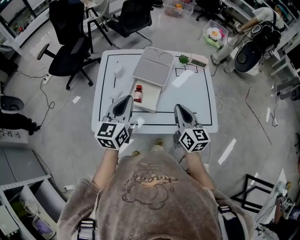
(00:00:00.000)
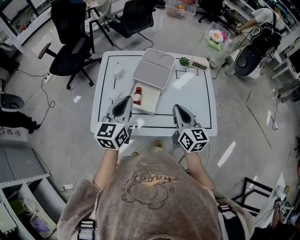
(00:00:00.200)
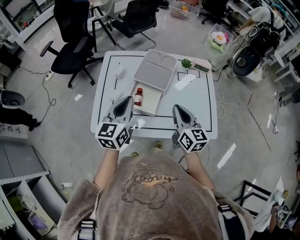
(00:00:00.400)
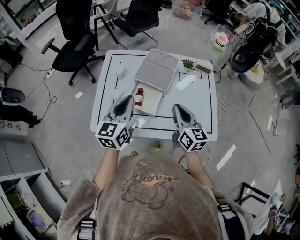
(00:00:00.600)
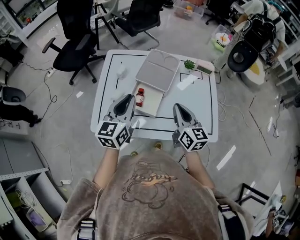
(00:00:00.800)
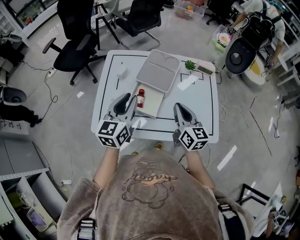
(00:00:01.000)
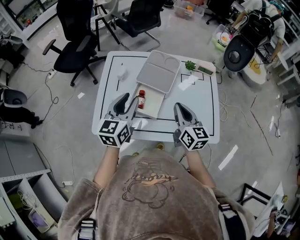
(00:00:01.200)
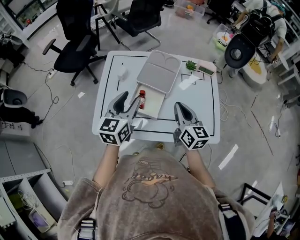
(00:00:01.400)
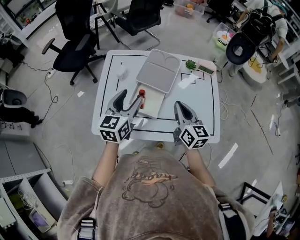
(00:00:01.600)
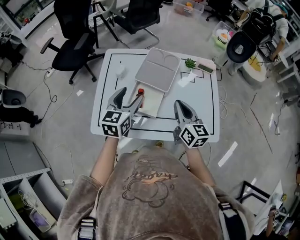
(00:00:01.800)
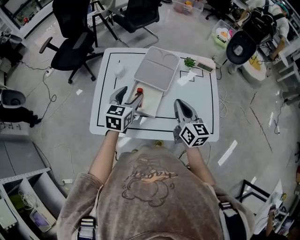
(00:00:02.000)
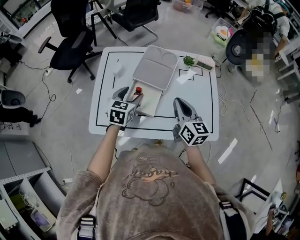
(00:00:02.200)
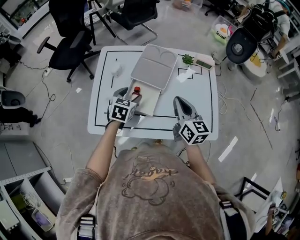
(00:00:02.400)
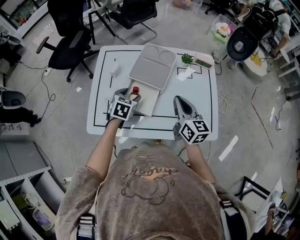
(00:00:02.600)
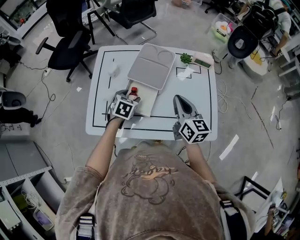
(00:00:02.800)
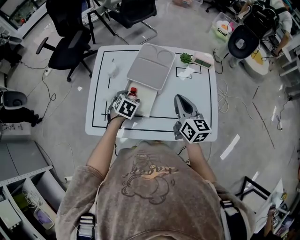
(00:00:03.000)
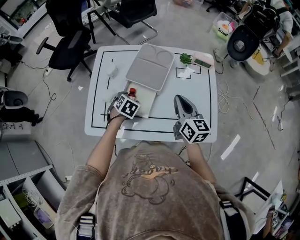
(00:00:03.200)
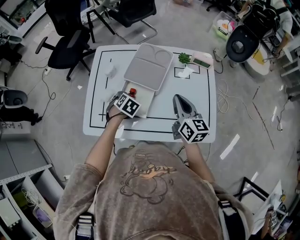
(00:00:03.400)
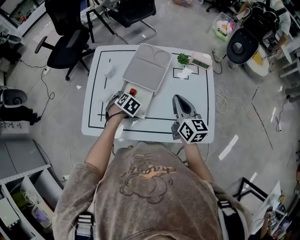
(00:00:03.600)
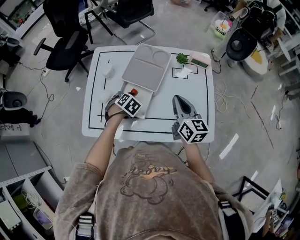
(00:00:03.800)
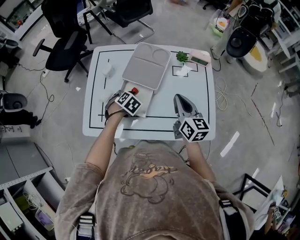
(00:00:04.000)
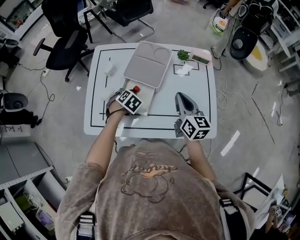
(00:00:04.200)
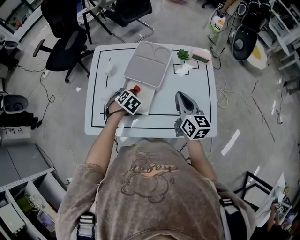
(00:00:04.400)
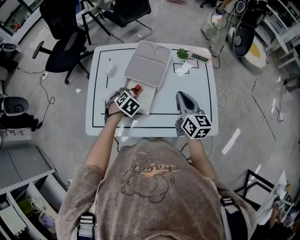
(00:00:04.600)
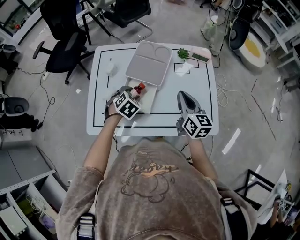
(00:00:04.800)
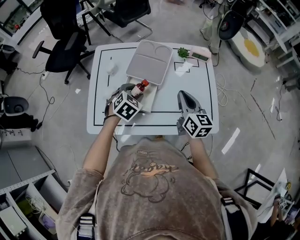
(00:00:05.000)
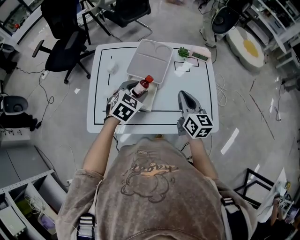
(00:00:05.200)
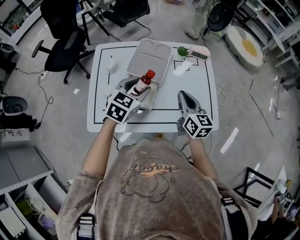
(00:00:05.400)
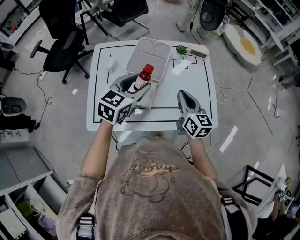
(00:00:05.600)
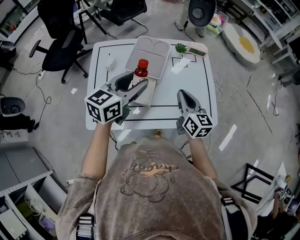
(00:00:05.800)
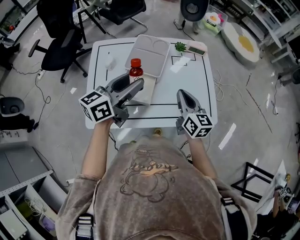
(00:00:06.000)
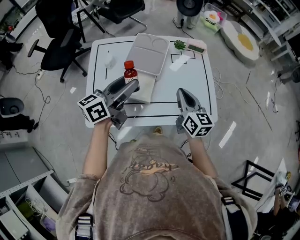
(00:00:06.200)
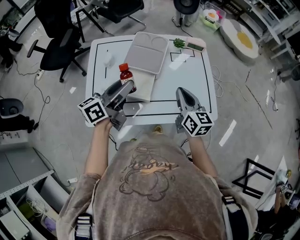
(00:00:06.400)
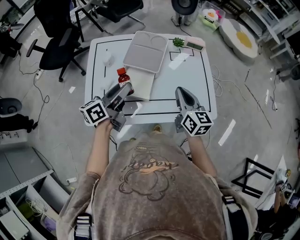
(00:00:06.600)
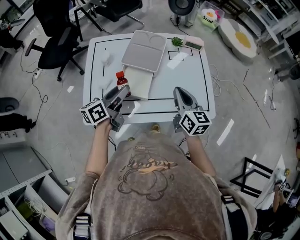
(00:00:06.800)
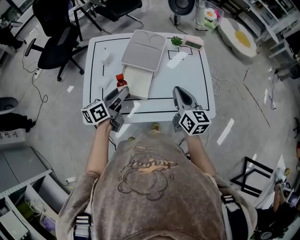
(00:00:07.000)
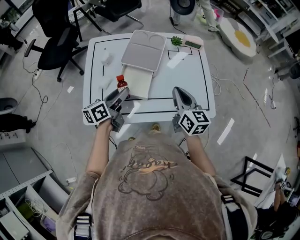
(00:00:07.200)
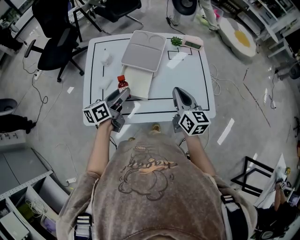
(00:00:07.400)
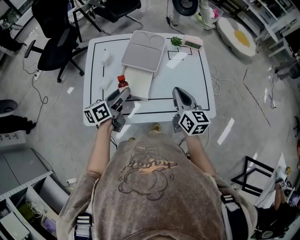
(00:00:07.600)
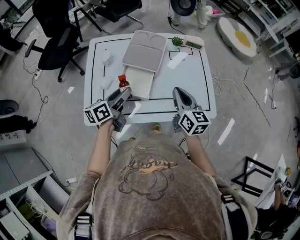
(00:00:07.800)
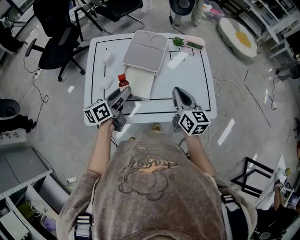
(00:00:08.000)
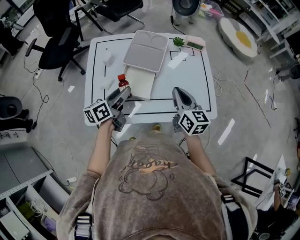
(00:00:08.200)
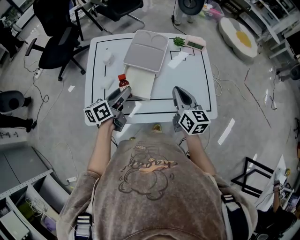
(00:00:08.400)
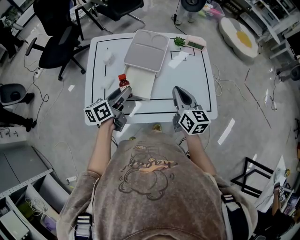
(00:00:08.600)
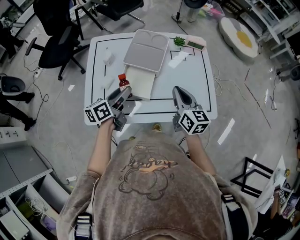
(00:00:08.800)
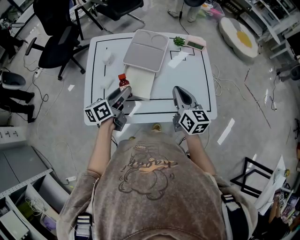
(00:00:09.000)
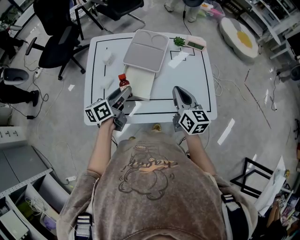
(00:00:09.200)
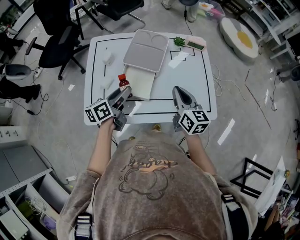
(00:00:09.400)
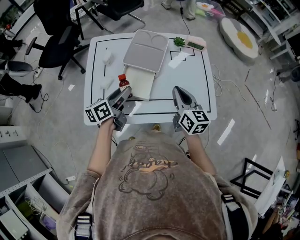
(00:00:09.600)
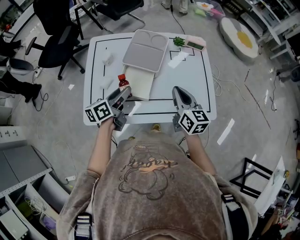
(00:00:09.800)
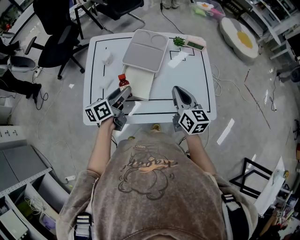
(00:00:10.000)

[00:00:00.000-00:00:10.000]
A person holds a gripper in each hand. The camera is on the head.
00:00:00.000 to 00:00:01.400: The left gripper opens its fingers. Meanwhile the right gripper travels forward by some 5 cm.
00:00:01.400 to 00:00:02.800: The left gripper travels downward by some 20 cm, and angles its fingers downward, by roughly 40 degrees; the right gripper moves roughly 5 cm.
00:00:02.800 to 00:00:04.200: The left gripper turns by roughly 30 degrees.
00:00:04.200 to 00:00:05.800: The left gripper moves upward, about 25 cm, and points its fingers about 60 degrees further upward; the right gripper goes approximately 5 cm backward.
00:00:05.800 to 00:00:07.200: The left gripper travels downward and to the left by some 15 cm, and swivels about 30 degrees.
00:00:07.200 to 00:00:10.000: Both grippers stay about where they are.

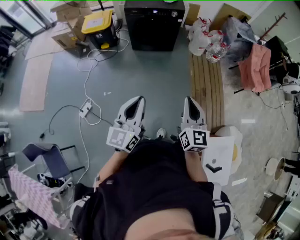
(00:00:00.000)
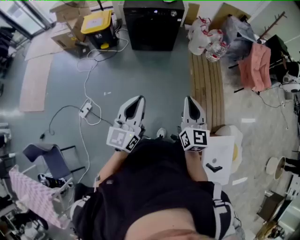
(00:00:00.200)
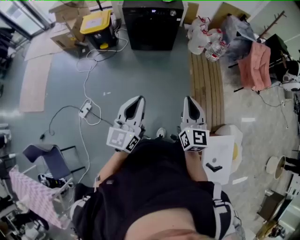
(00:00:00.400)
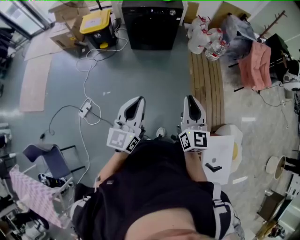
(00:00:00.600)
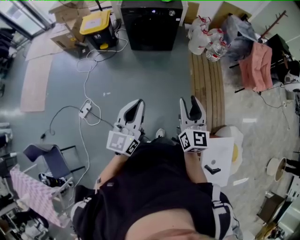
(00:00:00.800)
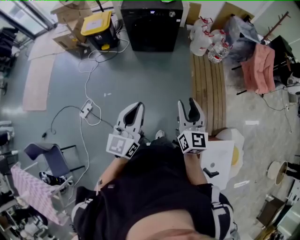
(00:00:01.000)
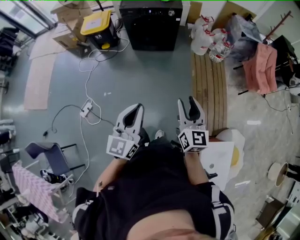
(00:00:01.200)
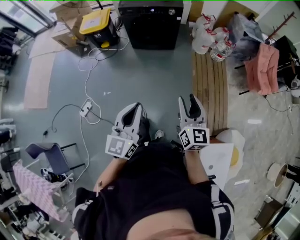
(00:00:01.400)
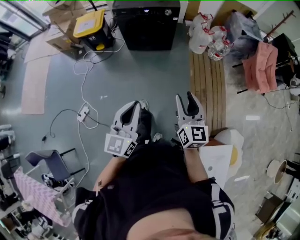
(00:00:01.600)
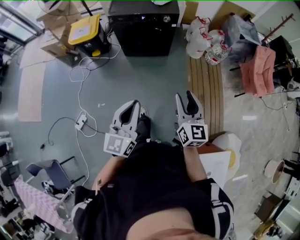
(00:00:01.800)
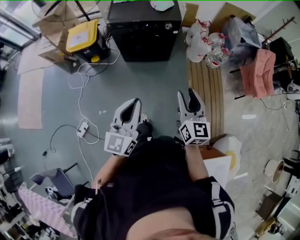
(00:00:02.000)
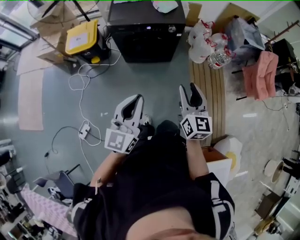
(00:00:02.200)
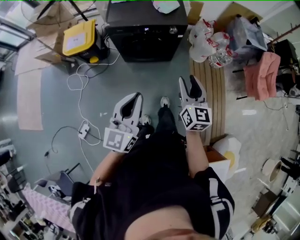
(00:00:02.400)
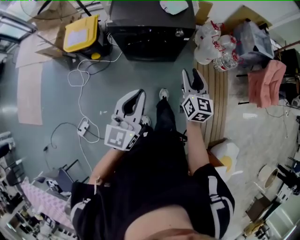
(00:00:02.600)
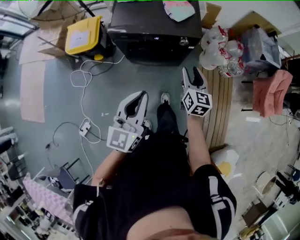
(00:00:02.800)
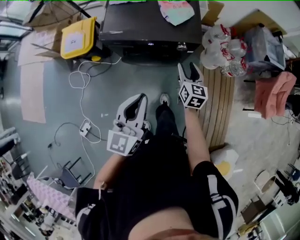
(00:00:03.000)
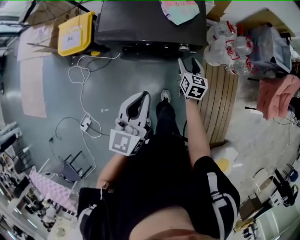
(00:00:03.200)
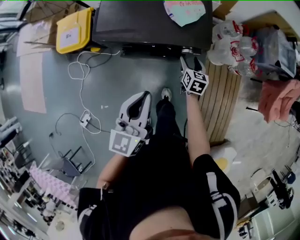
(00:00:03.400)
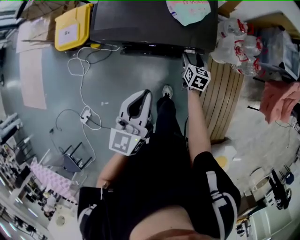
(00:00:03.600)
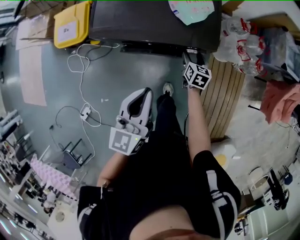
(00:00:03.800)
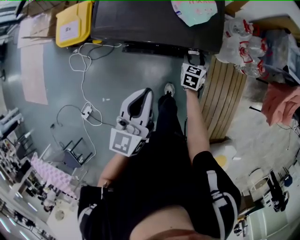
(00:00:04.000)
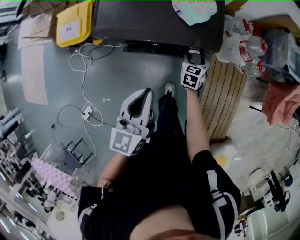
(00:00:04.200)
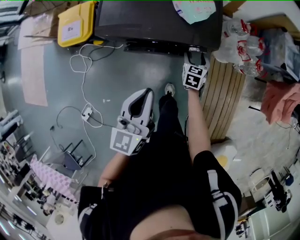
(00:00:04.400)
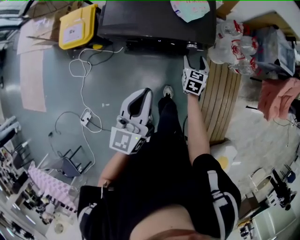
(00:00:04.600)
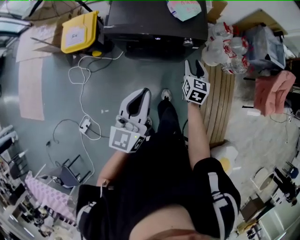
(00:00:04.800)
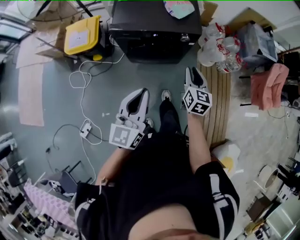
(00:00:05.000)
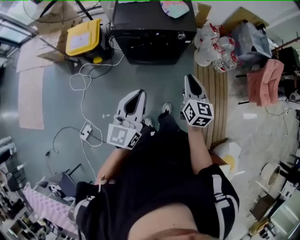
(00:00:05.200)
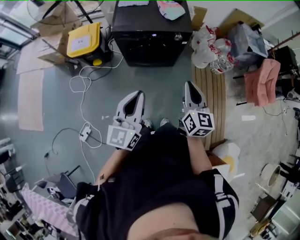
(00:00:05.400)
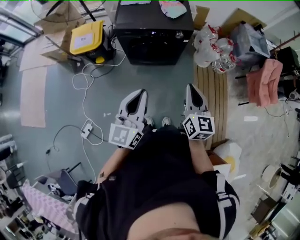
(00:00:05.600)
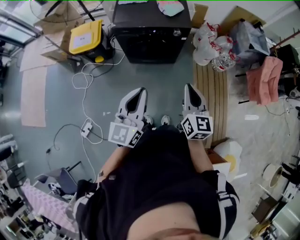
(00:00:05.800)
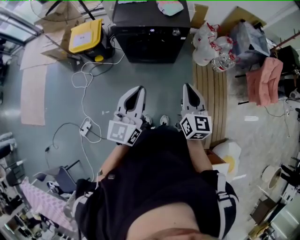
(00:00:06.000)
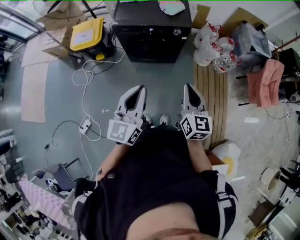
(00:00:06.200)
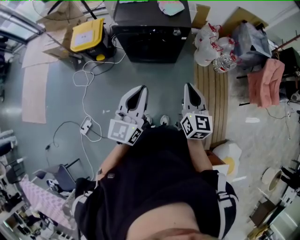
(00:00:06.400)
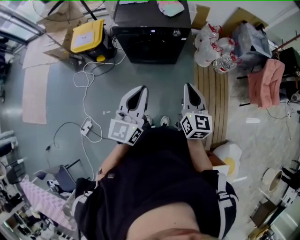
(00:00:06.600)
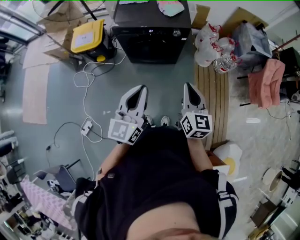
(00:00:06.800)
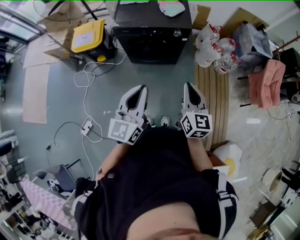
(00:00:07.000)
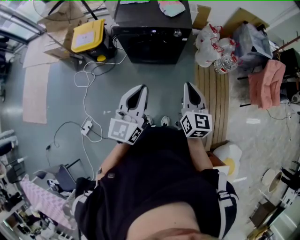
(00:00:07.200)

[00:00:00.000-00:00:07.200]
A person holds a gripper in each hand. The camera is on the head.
00:00:00.000 to 00:00:01.400: The left gripper goes roughly 15 cm to the right and forward; the right gripper heads forward and to the right, covering approximately 15 cm, and opens up.
00:00:01.400 to 00:00:02.800: The pair of grippers is taken forward, approximately 80 cm.
00:00:02.800 to 00:00:04.400: The right gripper shifts about 40 cm downward and forward, turns by approximately 30 degrees, and opens its fingers. The left gripper is displaced forward and downward by some 30 cm.
00:00:04.400 to 00:00:05.800: Both grippers are carried backward, about 60 cm. The right gripper heads upward, covering some 40 cm, tips its fingers upward by about 30 degrees, and closes its fingers; the left gripper is displaced upward by about 20 cm.
00:00:05.800 to 00:00:07.200: The grippers stay close to where they were, moving slightly.

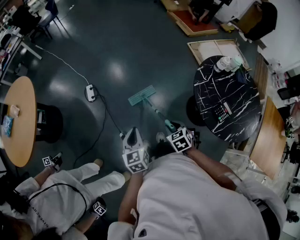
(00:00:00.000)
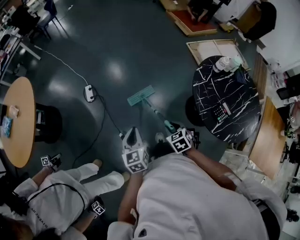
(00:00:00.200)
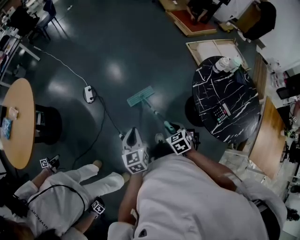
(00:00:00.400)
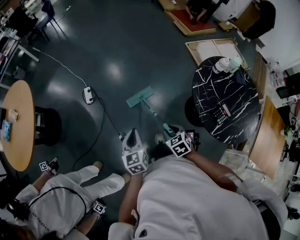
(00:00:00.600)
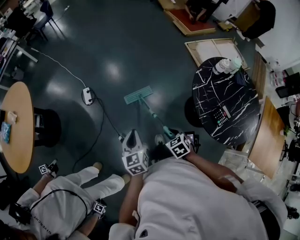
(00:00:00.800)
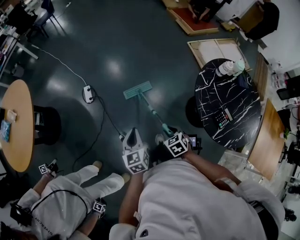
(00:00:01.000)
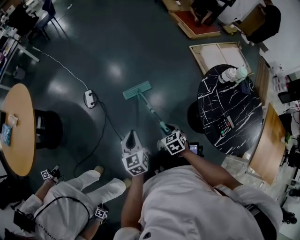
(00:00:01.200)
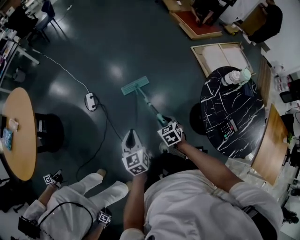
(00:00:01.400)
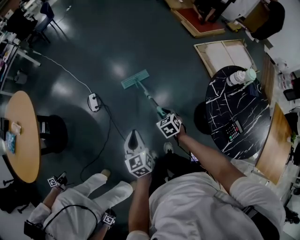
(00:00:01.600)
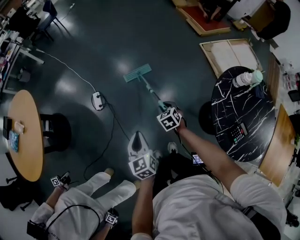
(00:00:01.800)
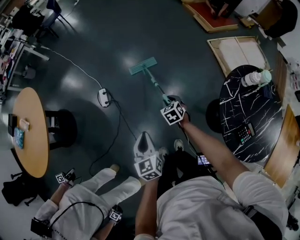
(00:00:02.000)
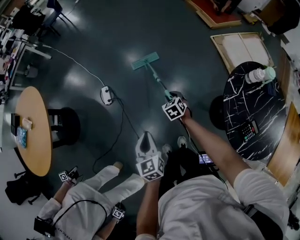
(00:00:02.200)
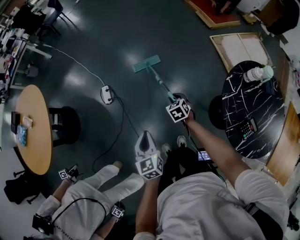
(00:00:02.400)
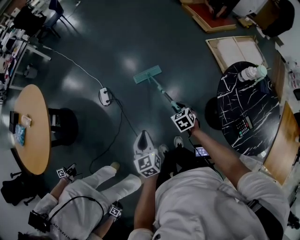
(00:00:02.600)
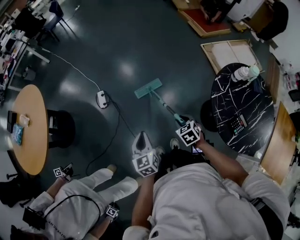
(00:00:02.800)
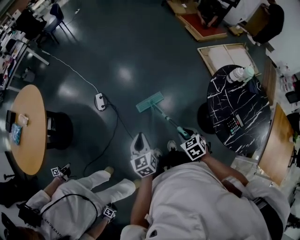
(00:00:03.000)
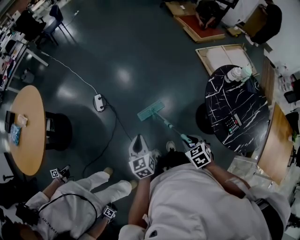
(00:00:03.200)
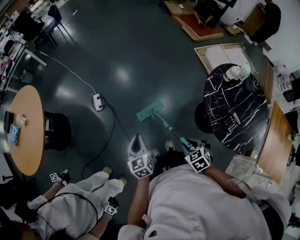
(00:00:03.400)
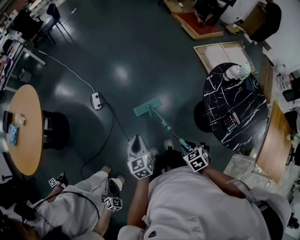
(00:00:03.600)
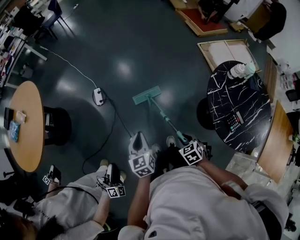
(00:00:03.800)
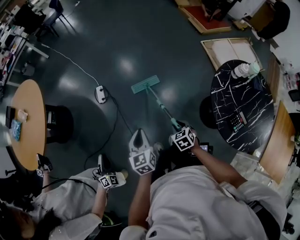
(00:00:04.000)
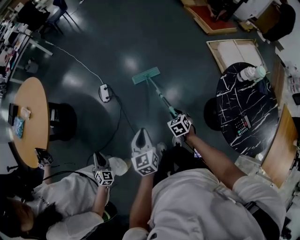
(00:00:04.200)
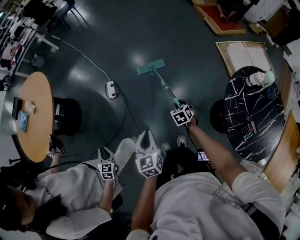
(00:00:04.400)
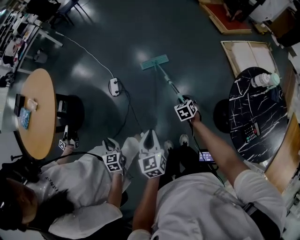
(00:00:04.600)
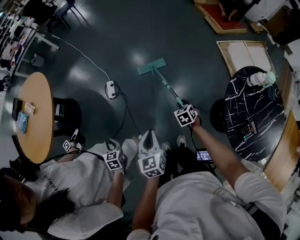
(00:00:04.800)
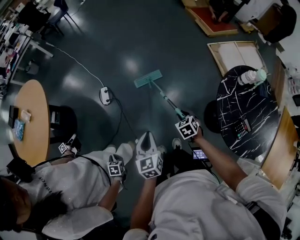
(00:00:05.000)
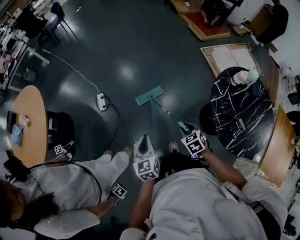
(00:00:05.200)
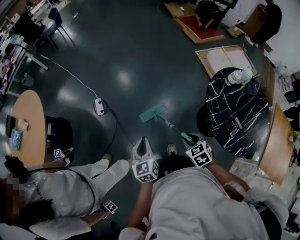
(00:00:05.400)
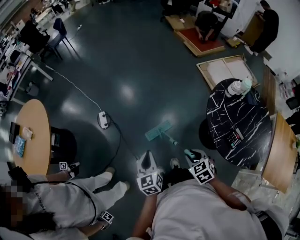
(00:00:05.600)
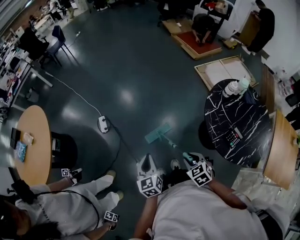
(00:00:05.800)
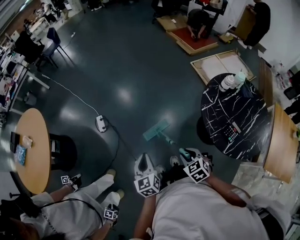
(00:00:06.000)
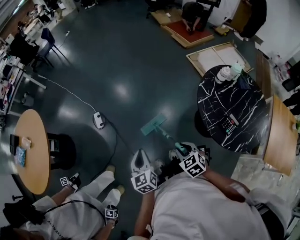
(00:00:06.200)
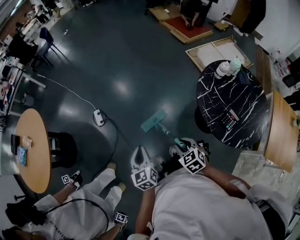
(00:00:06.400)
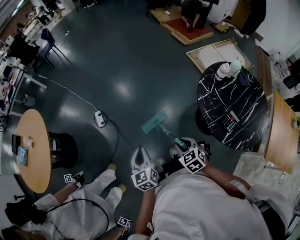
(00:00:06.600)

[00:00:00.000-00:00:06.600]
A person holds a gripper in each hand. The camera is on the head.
00:00:00.000 to 00:00:01.600: The left gripper shifts approximately 15 cm forward, while the right gripper is displaced forward by about 25 cm.
00:00:01.600 to 00:00:03.200: The right gripper is displaced backward and upward by roughly 25 cm, while the left gripper is displaced backward by roughly 10 cm.
00:00:03.200 to 00:00:05.000: The right gripper goes some 20 cm forward and downward.
00:00:05.000 to 00:00:06.600: The right gripper heads backward and upward, covering some 20 cm. Meanwhile the left gripper travels backward by about 5 cm.
